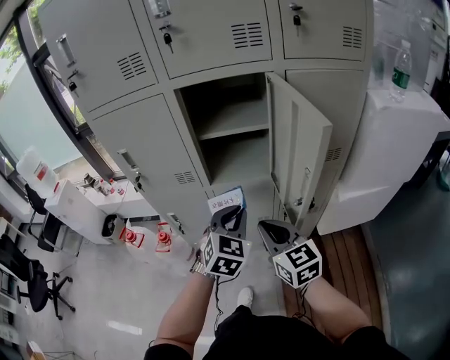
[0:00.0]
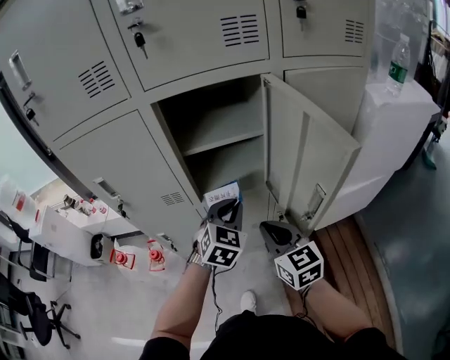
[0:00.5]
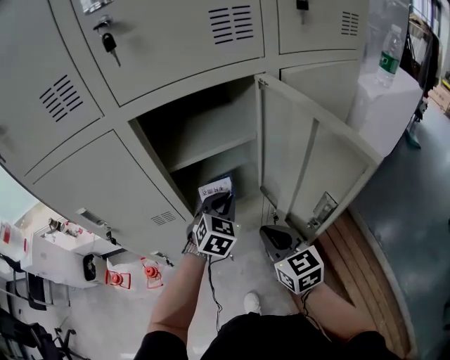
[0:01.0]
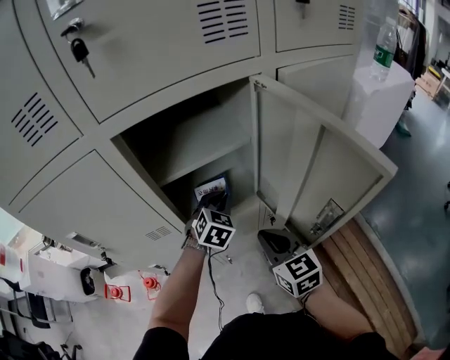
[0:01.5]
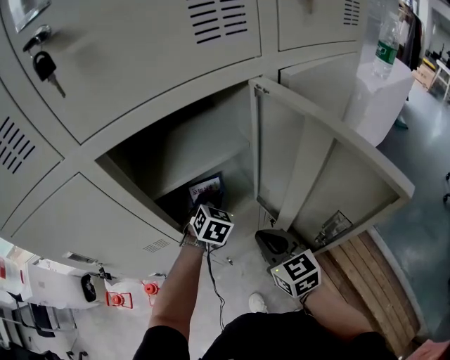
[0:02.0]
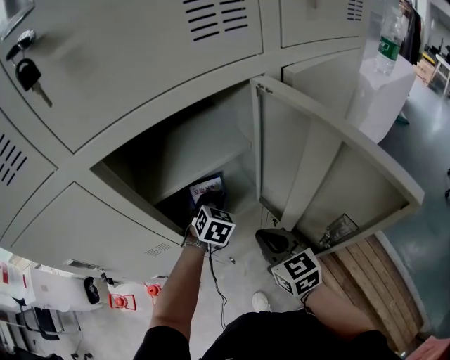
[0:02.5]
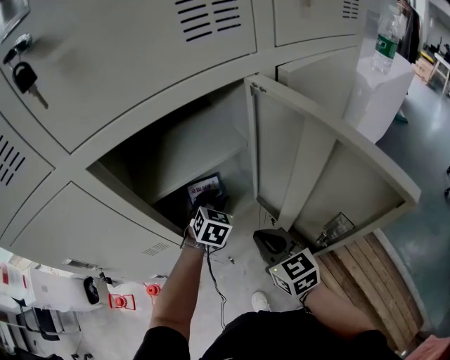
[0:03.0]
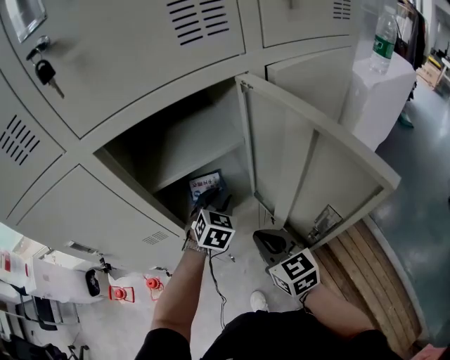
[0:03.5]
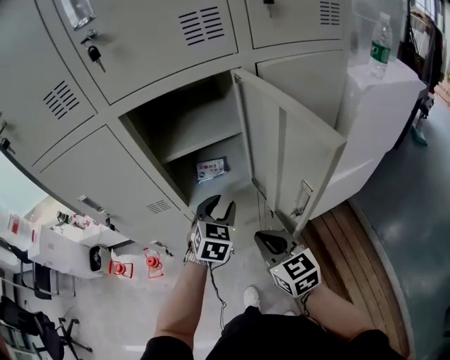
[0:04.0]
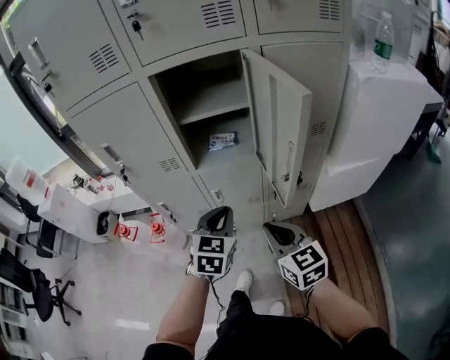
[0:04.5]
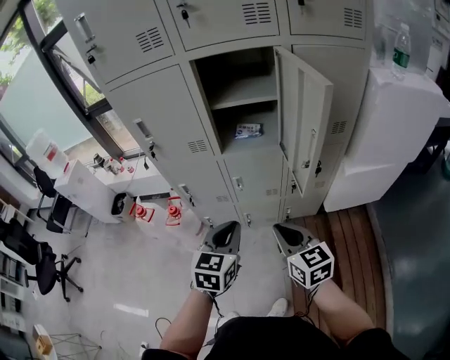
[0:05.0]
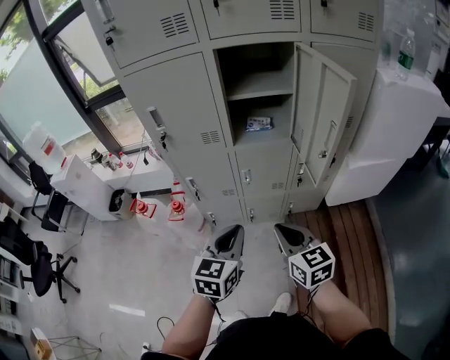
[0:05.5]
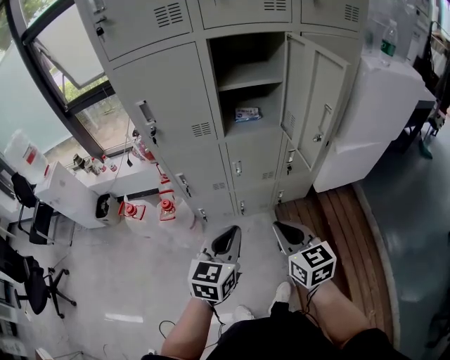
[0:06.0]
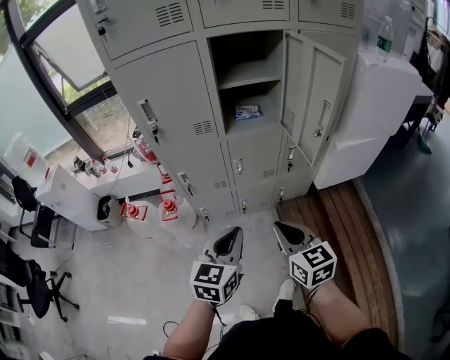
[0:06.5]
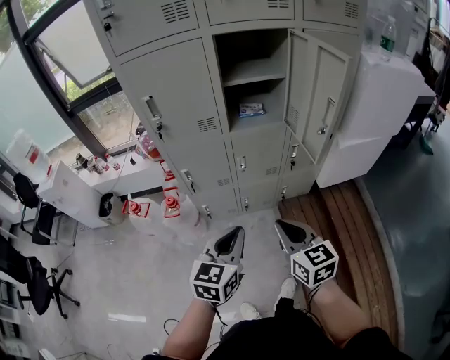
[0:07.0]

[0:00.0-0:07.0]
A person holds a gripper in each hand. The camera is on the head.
0:00.0 to 0:02.0: The right gripper travels forward and downward by about 15 cm, and changes its angle by roughly 20 degrees; the left gripper heads forward and downward, covering about 30 cm, and changes its angle by about 20 degrees.
0:02.0 to 0:03.5: The left gripper opens up.
0:03.5 to 0:05.0: The right gripper travels backward by approximately 25 cm. The left gripper shifts about 40 cm backward, rotates some 40 degrees, and closes its fingers.
0:05.0 to 0:07.0: The grippers both shift to the left and backward by some 15 cm.

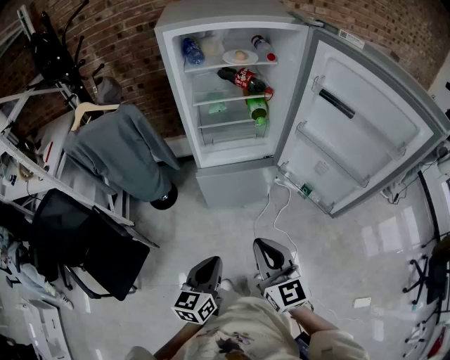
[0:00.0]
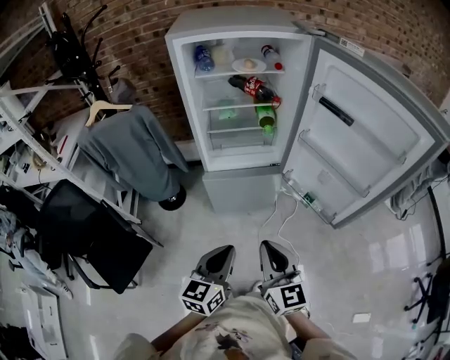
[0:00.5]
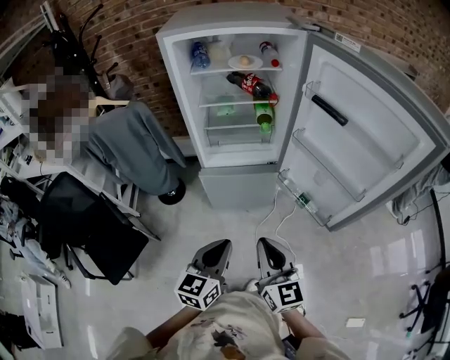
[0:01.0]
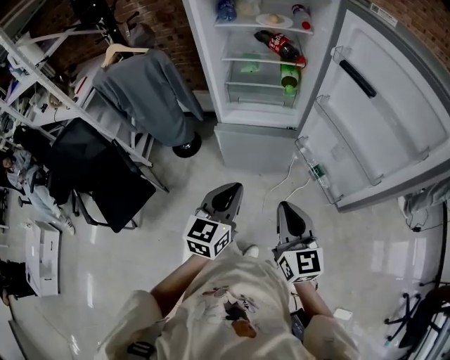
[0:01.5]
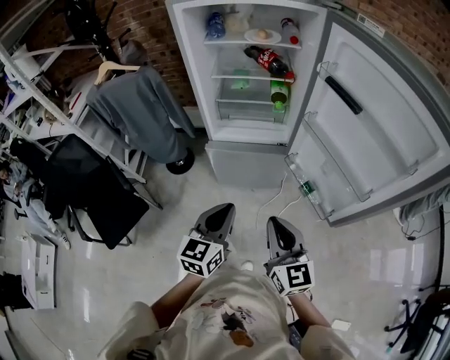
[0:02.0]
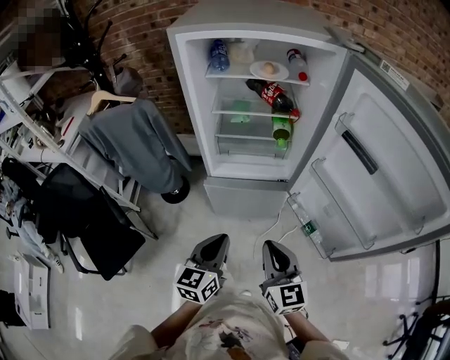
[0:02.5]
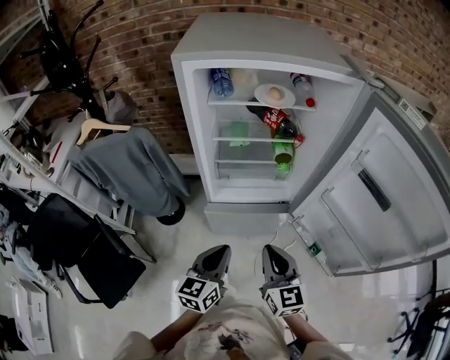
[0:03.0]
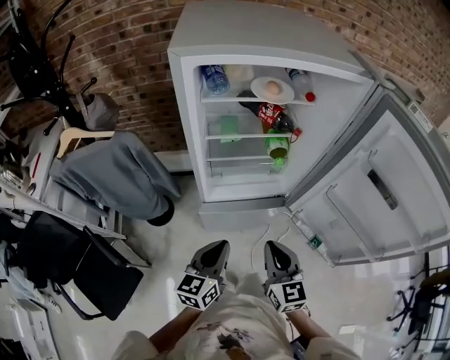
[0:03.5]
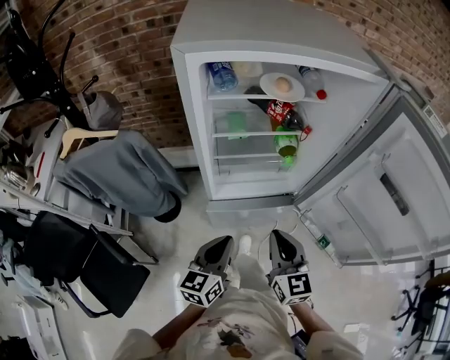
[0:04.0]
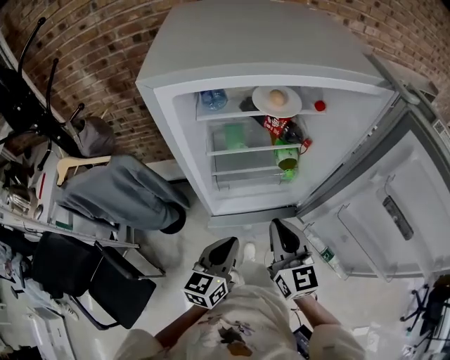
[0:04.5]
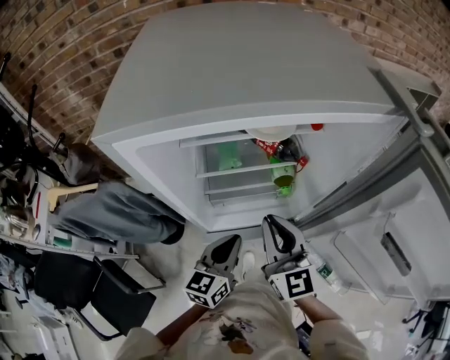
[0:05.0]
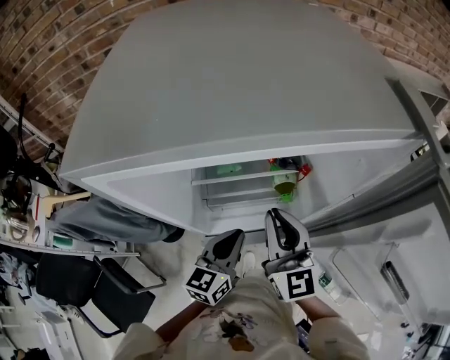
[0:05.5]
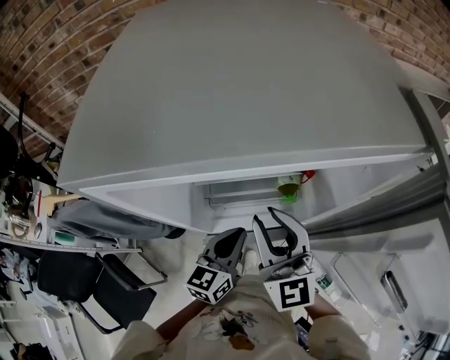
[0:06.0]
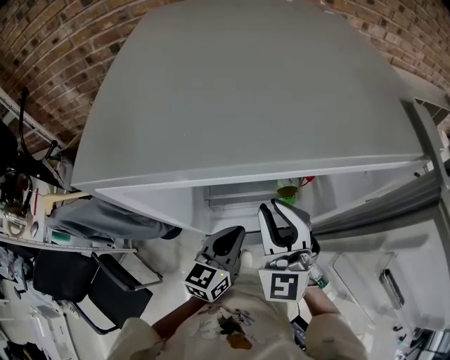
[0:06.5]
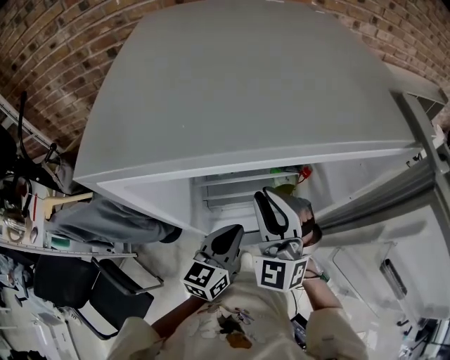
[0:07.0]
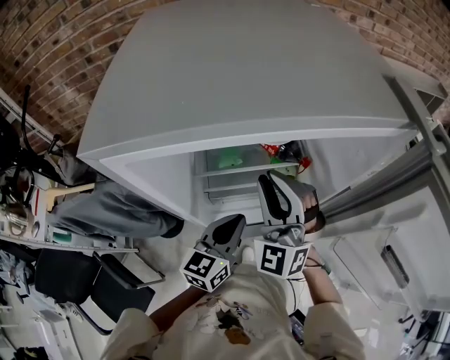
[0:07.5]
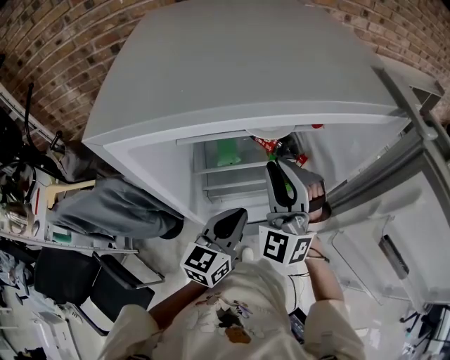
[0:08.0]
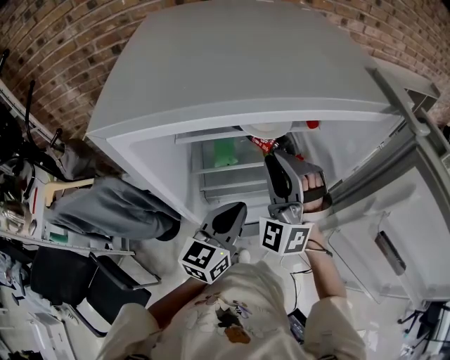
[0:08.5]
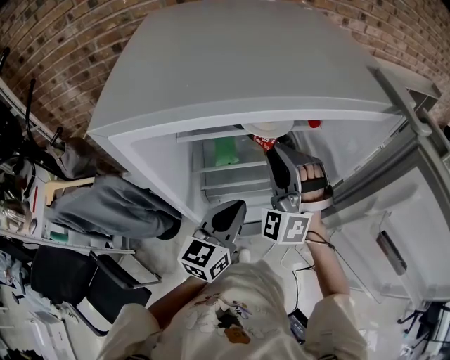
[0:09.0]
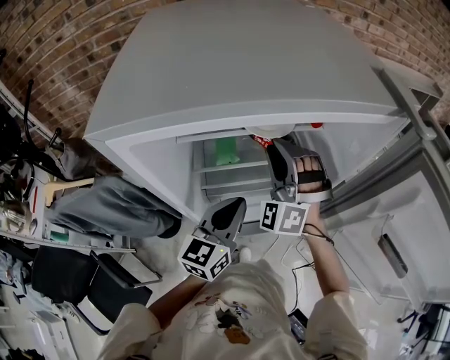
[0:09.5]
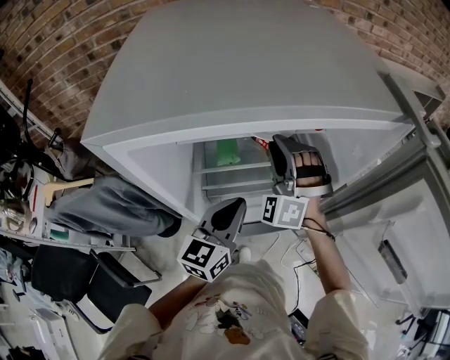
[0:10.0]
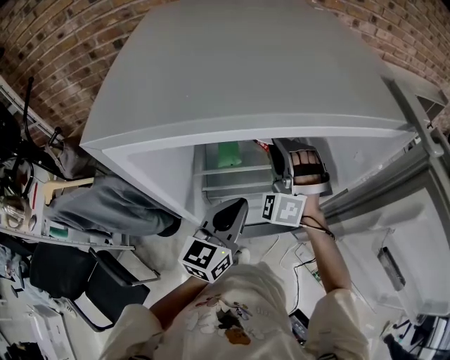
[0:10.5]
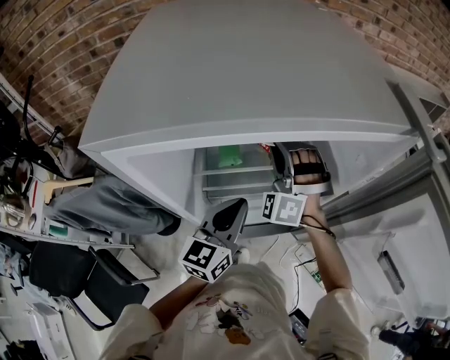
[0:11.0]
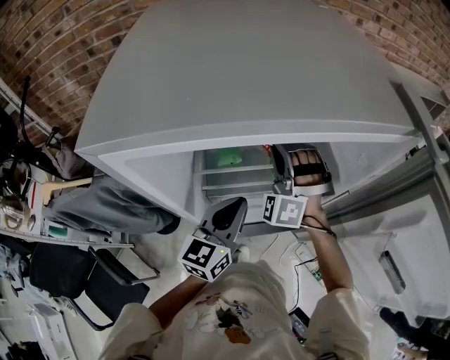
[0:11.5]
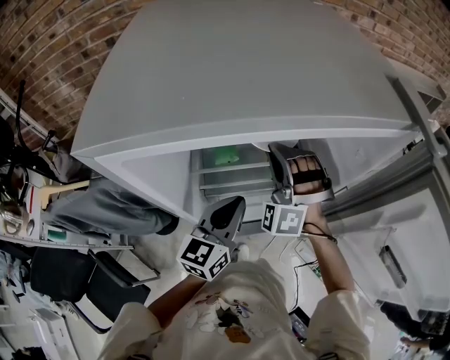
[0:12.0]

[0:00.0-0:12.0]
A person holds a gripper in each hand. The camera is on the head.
0:00.0 to 0:02.0: The right gripper moves to the right, some 15 cm. Meanwhile the left gripper moves to the right and forward, roughly 15 cm.
0:02.0 to 0:04.0: The two grippers go some 30 cm forward and to the left.
0:04.0 to 0:06.0: The left gripper travels forward by about 25 cm. Meanwhile the right gripper moves forward and upward, approximately 25 cm, and turns by approximately 20 degrees.
0:06.0 to 0:08.0: The right gripper twists roughly 50 degrees counterclockwise, seen from behind.
0:08.0 to 0:10.0: The right gripper travels forward by about 10 cm, and swivels approximately 20 degrees.
0:10.0 to 0:12.0: The grippers move only a little.

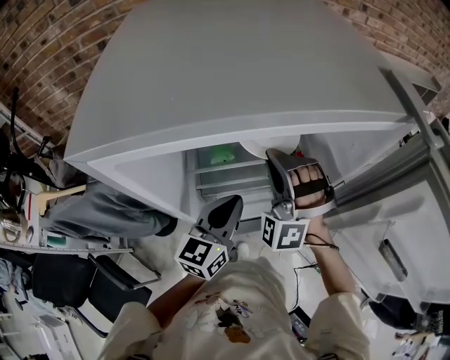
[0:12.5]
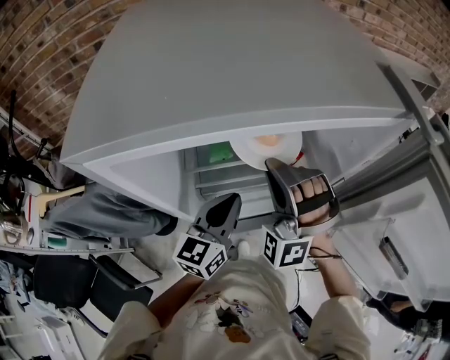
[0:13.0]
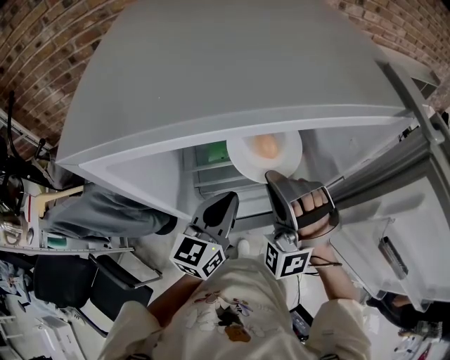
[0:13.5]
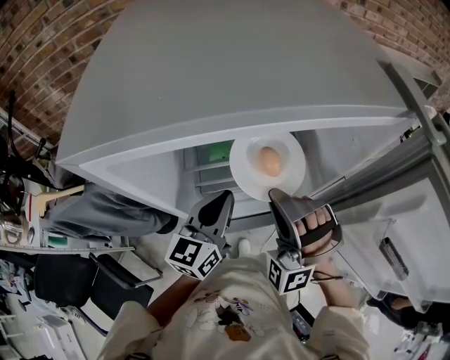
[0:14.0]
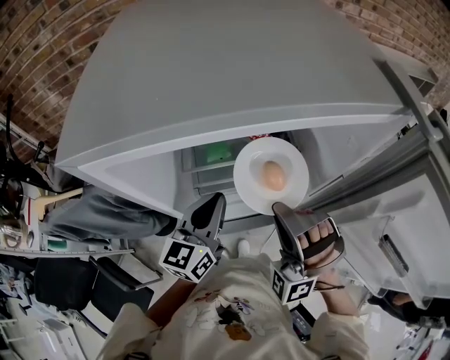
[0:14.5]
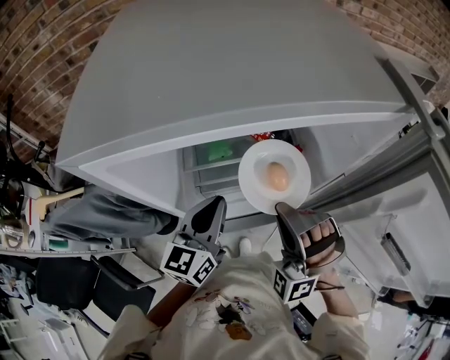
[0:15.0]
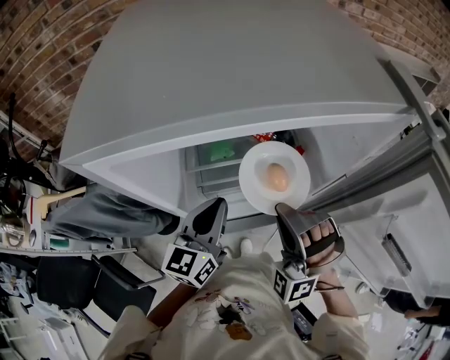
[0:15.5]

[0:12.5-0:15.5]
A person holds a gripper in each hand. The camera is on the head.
0:12.5 to 0:14.0: The right gripper shifts some 10 cm backward.
0:14.0 to 0:15.5: The grippers make only small movements.

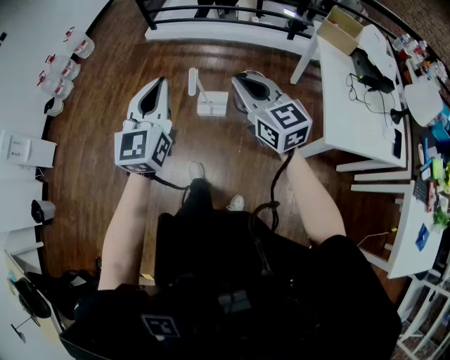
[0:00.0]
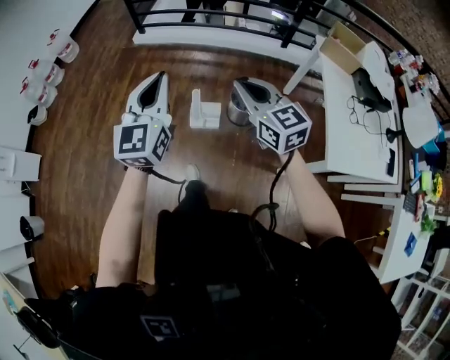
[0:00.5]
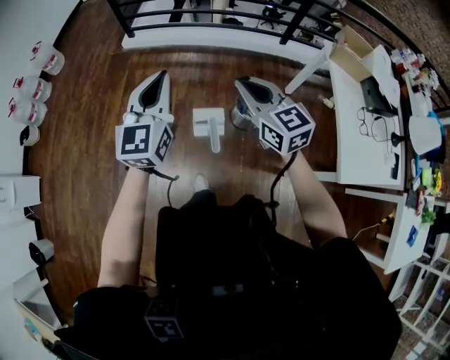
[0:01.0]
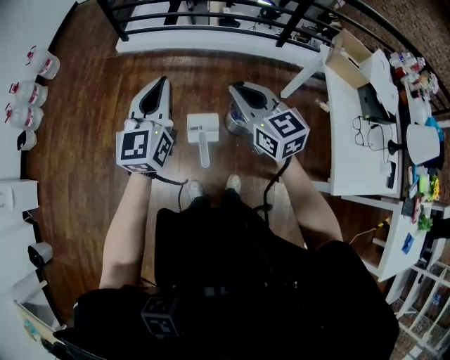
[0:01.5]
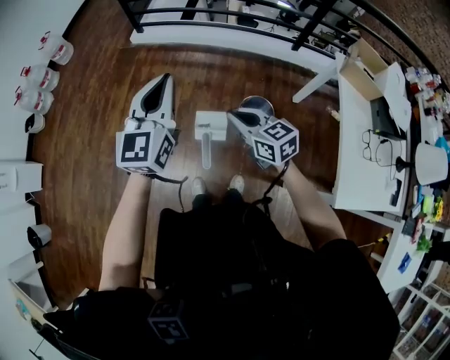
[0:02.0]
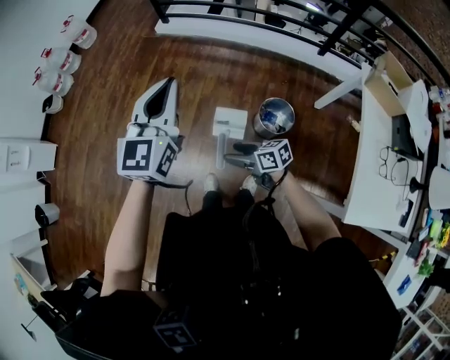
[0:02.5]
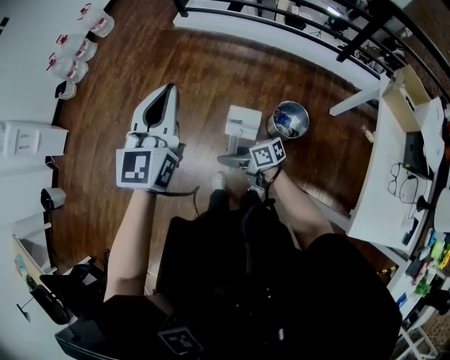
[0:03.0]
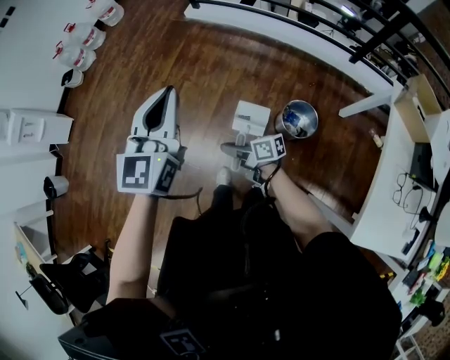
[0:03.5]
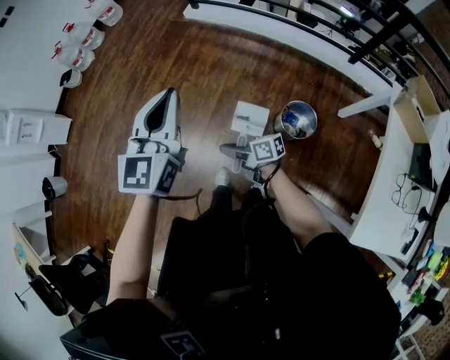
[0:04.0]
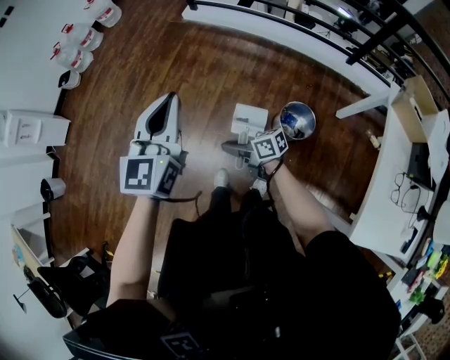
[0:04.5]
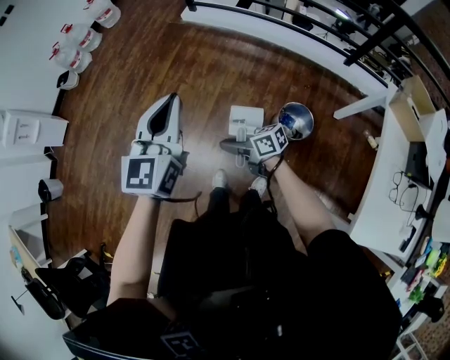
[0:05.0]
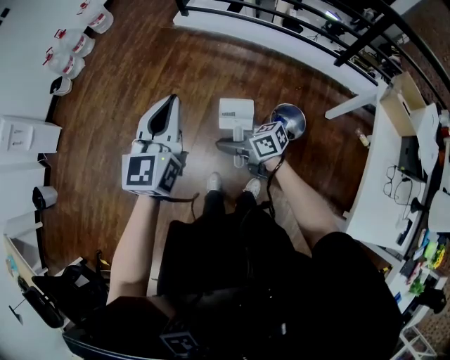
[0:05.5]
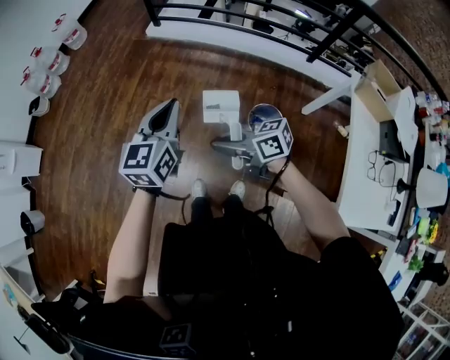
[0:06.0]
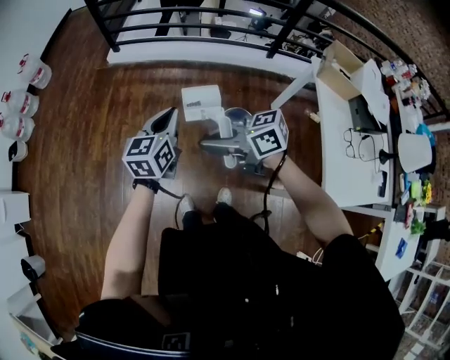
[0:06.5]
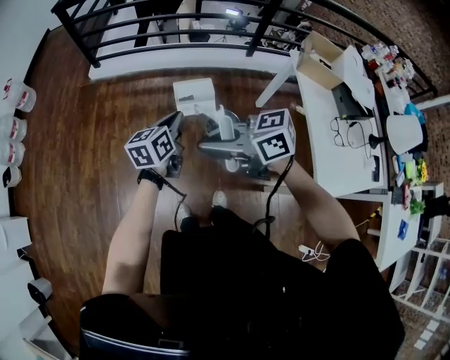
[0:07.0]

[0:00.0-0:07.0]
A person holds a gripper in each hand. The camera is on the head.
0:00.0 to 0:02.0: The left gripper goes approximately 35 cm forward. The right gripper moves forward and downward, about 35 cm, and turns by about 20 degrees.
0:02.0 to 0:03.5: The left gripper shifts by some 10 cm. The right gripper goes about 15 cm downward, swivels roughly 50 degrees, and opens and closes again.
0:03.5 to 0:05.0: There are only small adjustments of the grippers.
0:05.0 to 0:07.0: The right gripper goes approximately 25 cm upward, and rotates approximately 30 degrees, while the left gripper changes place by approximately 25 cm, and turns by roughly 40 degrees.
